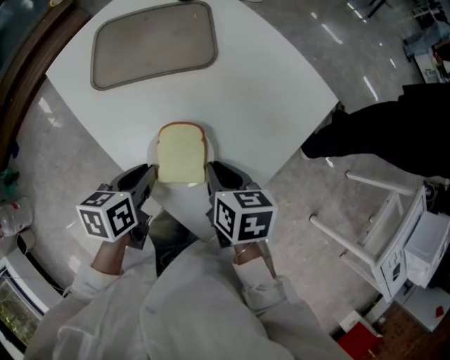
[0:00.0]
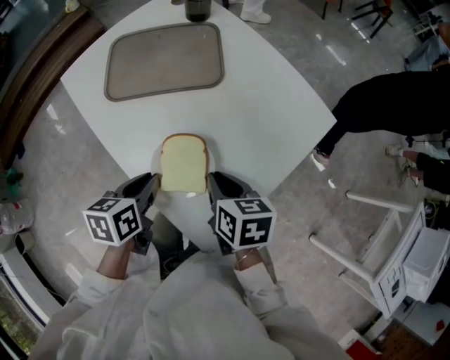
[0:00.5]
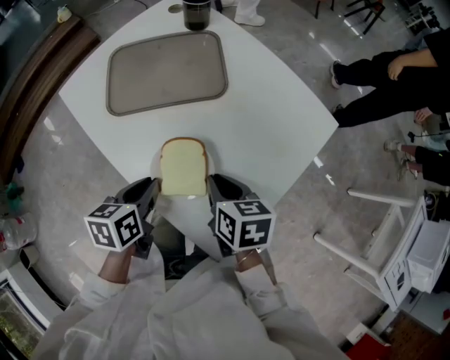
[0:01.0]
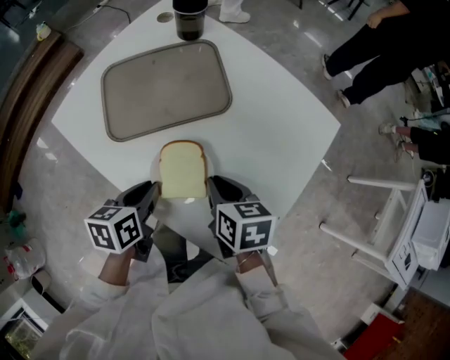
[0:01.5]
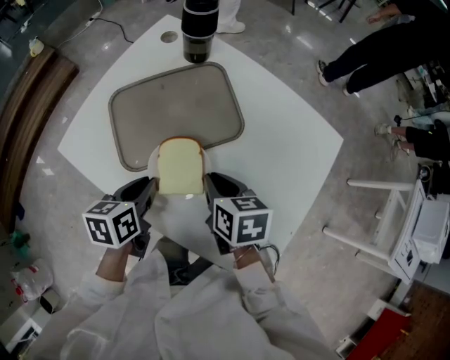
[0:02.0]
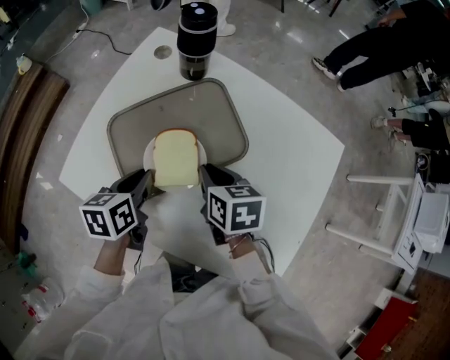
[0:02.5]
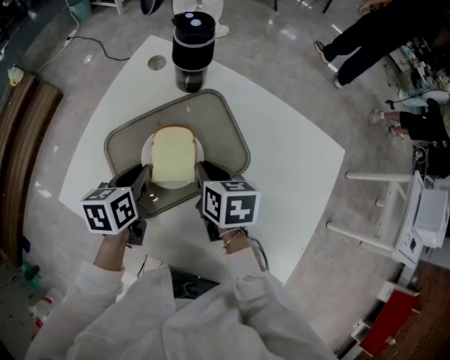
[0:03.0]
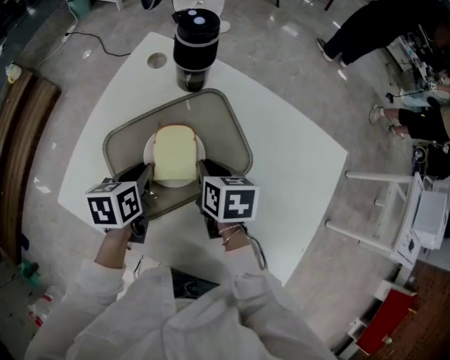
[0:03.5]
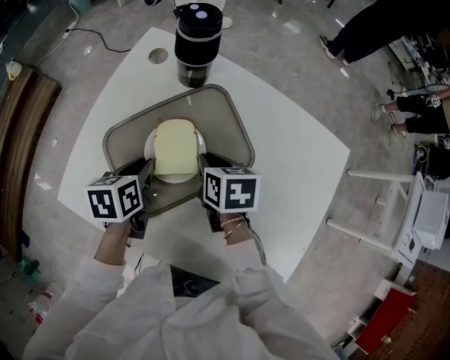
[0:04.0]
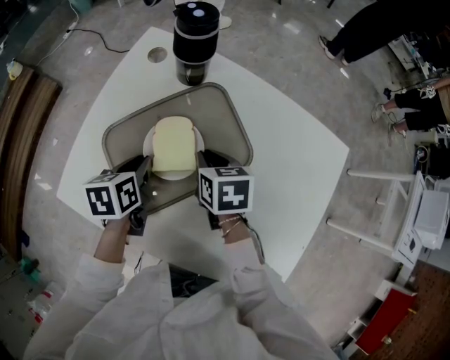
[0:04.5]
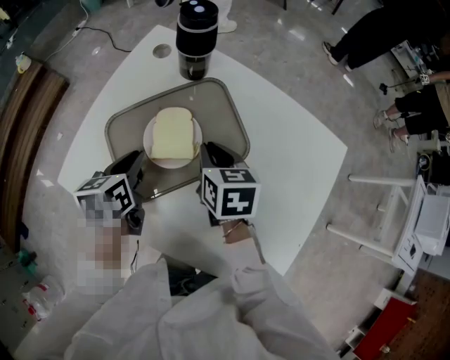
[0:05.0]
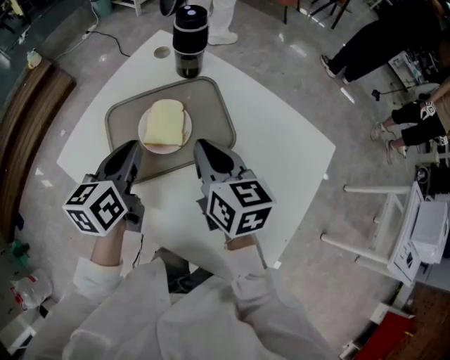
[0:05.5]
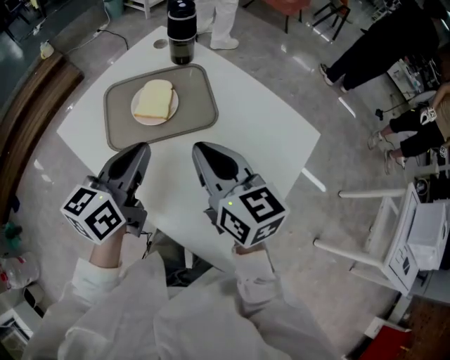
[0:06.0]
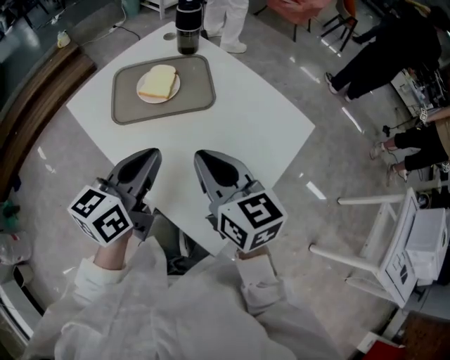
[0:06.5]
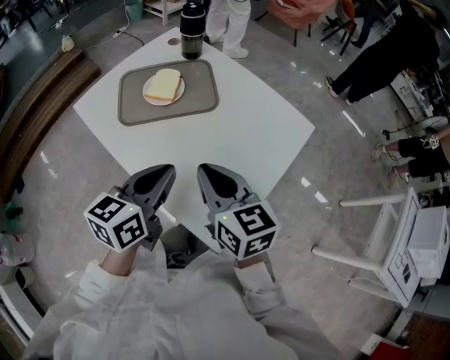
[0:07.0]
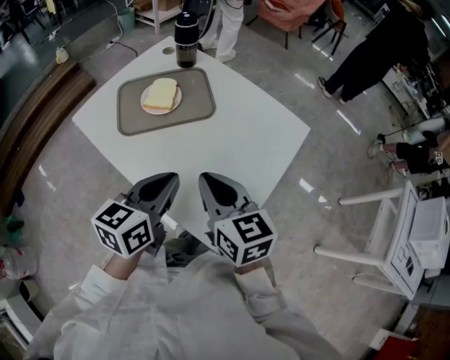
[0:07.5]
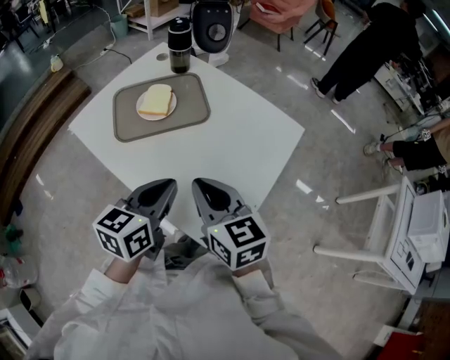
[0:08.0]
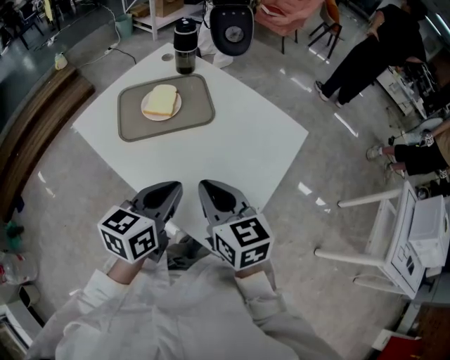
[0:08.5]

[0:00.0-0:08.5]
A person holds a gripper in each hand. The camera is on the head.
0:00.0 to 0:02.0: The grippers both shift forward and to the left by roughly 20 cm.
0:02.0 to 0:04.0: The two grippers go about 15 cm forward.
0:04.0 to 0:06.5: The grippers both shift backward, upward and to the right by approximately 40 cm. The right gripper angles its fingers upward, by approximately 40 degrees, while the left gripper tilts its fingers approximately 40 degrees upward.
0:06.5 to 0:08.5: The left gripper shifts by approximately 5 cm.

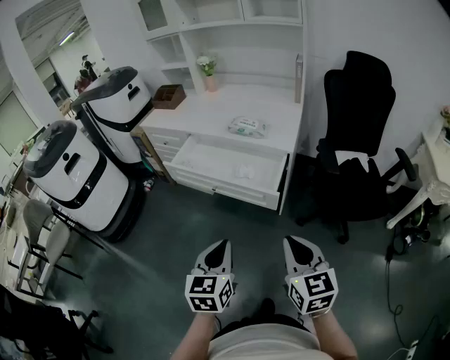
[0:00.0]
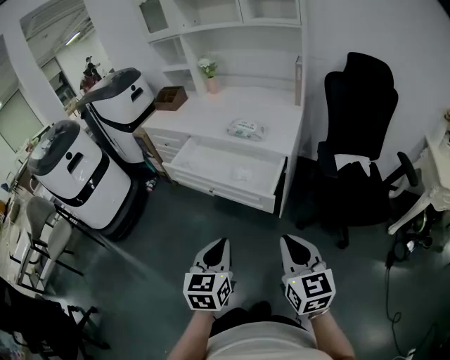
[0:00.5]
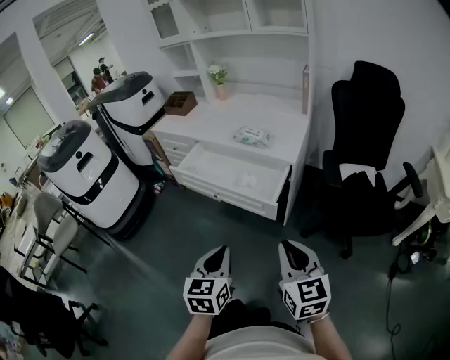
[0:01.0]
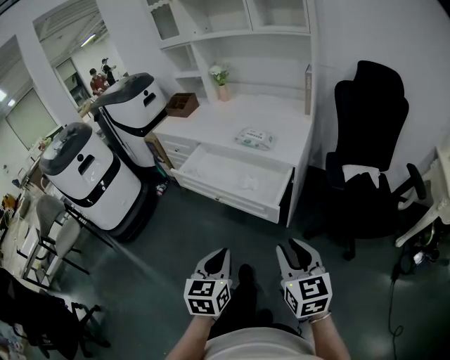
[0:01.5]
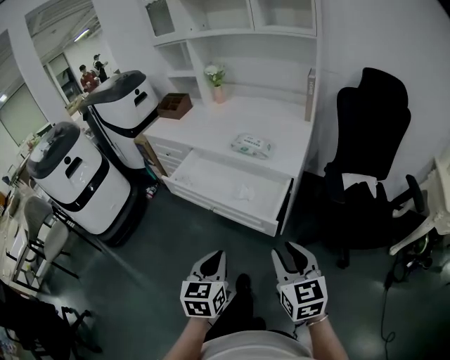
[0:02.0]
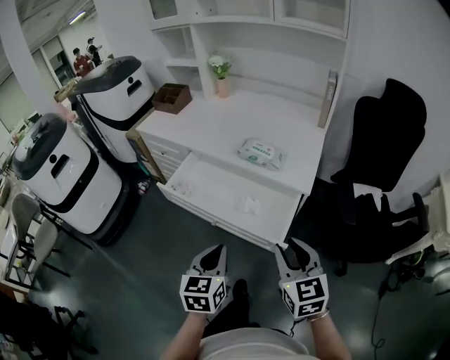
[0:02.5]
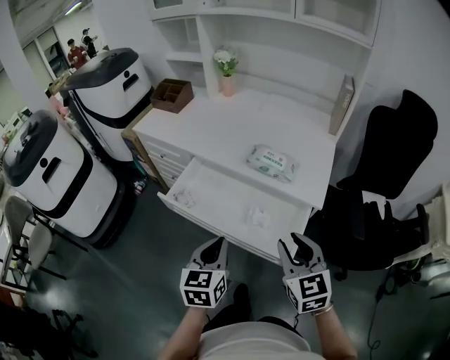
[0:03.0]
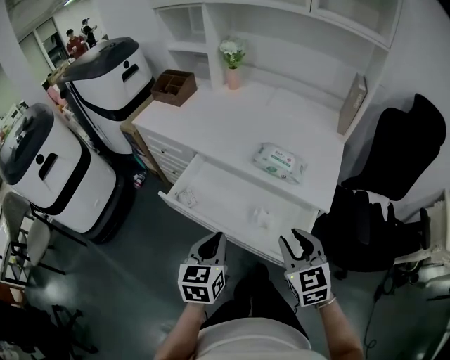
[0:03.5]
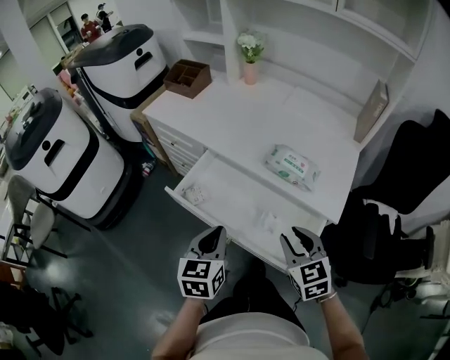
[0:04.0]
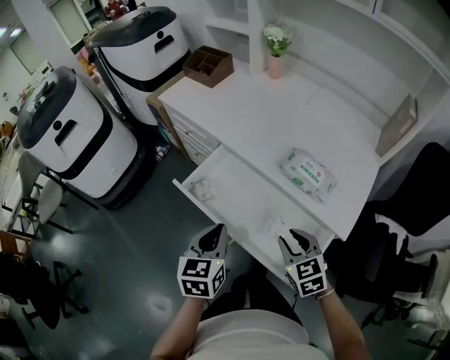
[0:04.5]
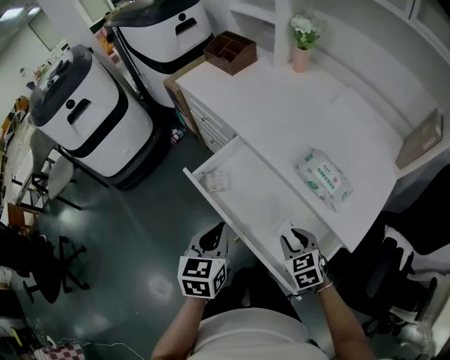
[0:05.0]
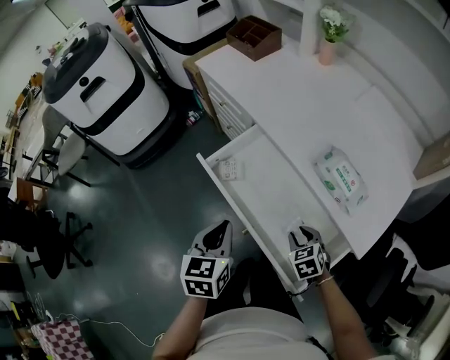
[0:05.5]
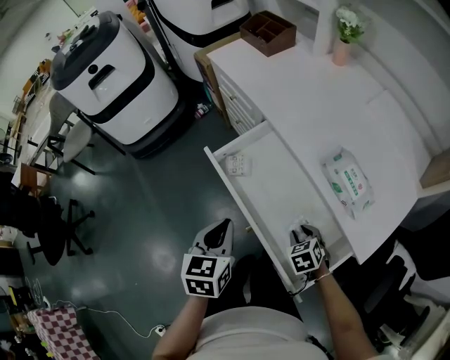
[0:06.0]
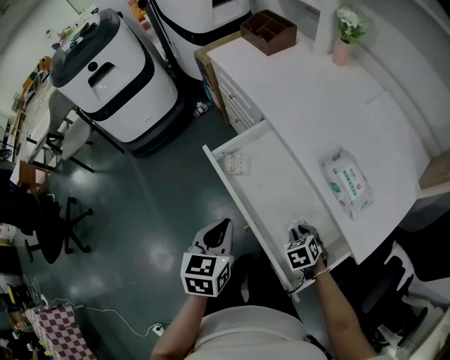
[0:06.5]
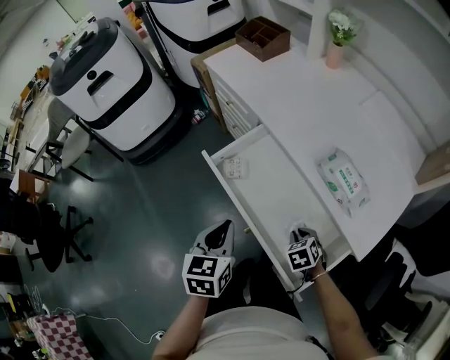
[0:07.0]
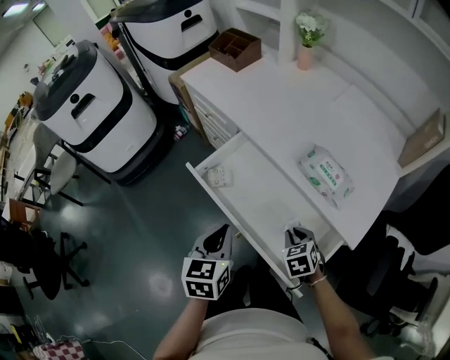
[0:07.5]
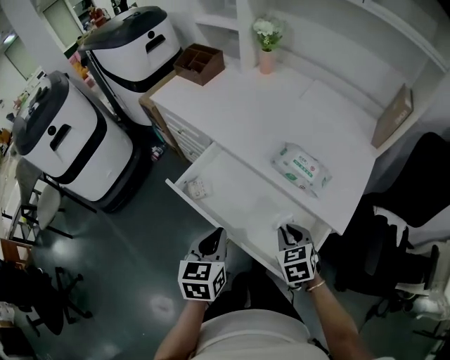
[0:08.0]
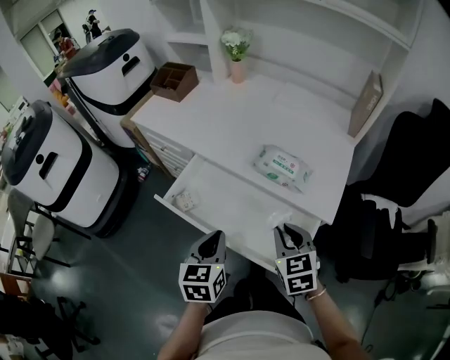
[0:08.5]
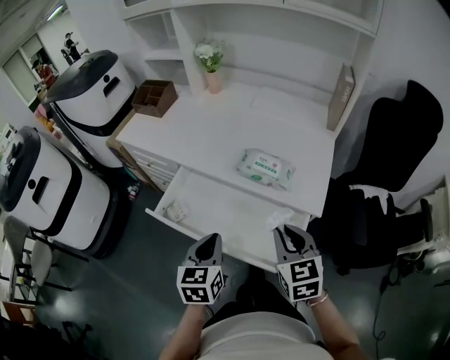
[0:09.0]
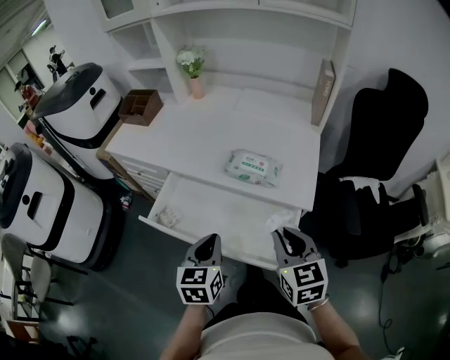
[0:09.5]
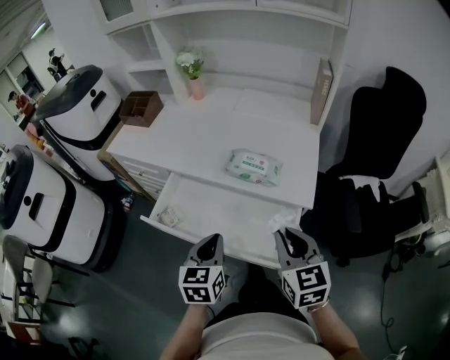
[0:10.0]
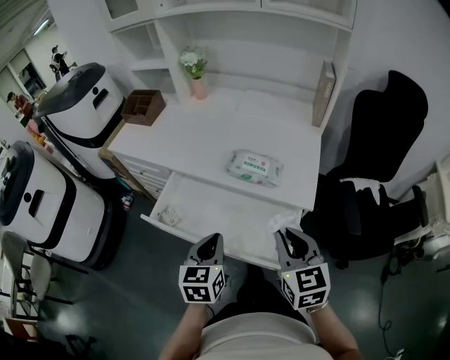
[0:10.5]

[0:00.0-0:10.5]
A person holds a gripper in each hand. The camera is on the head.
0:00.0 to 0:02.0: Both grippers travel together forward, some 10 cm. The right gripper opens.
0:02.0 to 0:04.0: Both grippers move forward, roughly 30 cm. The right gripper turns by about 20 degrees.
0:04.0 to 0:06.5: The left gripper changes place by about 5 cm, and swivels about 30 degrees; the right gripper is displaced downward by roughly 20 cm, and tips its fingers downward by some 40 degrees.
0:06.5 to 0:08.5: The right gripper is displaced upward by roughly 20 cm, and tilts its fingers roughly 30 degrees upward. The left gripper heads to the right, covering approximately 5 cm, and swivels roughly 20 degrees.
0:08.5 to 0:10.5: The right gripper heads upward and backward, covering approximately 10 cm.

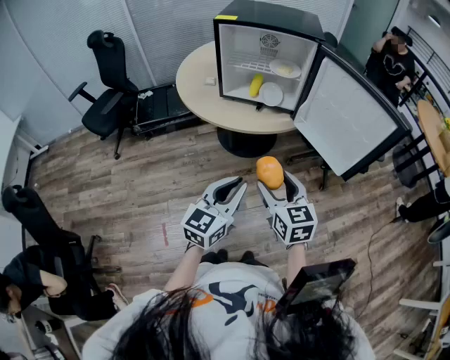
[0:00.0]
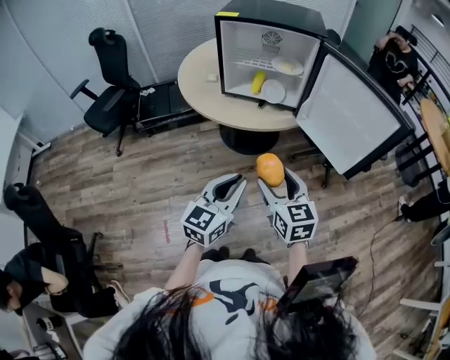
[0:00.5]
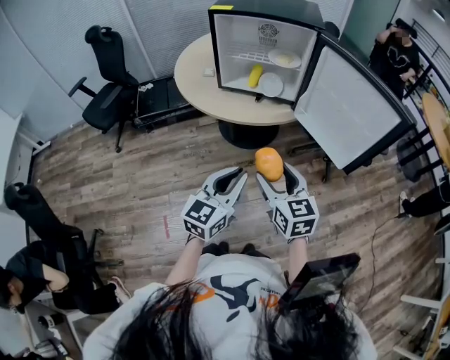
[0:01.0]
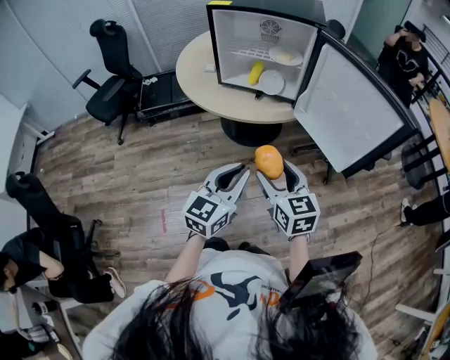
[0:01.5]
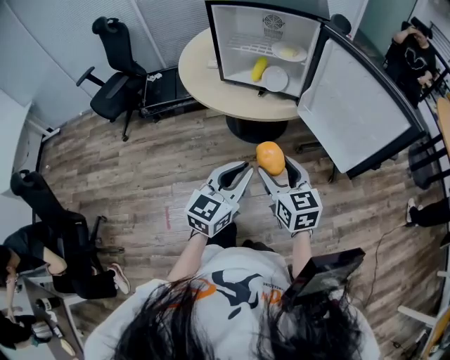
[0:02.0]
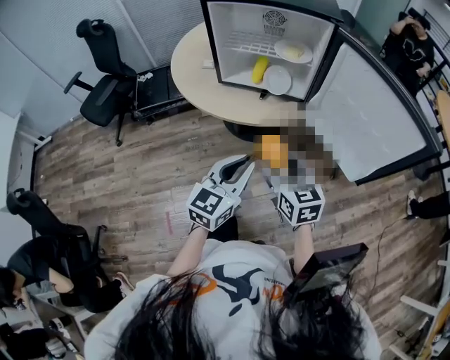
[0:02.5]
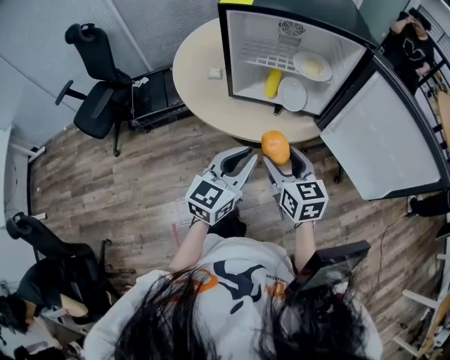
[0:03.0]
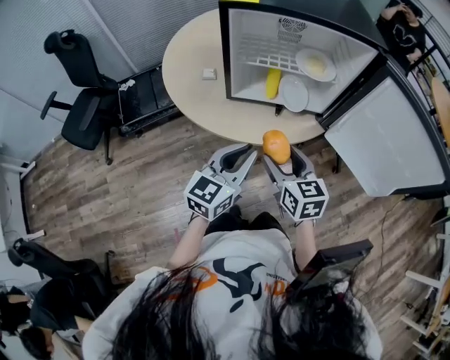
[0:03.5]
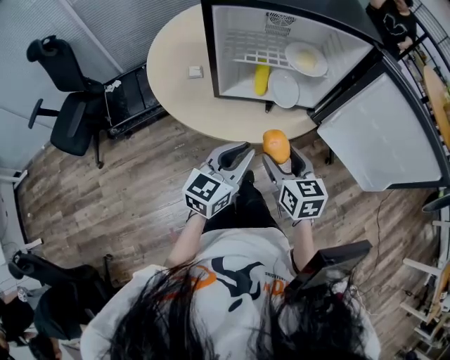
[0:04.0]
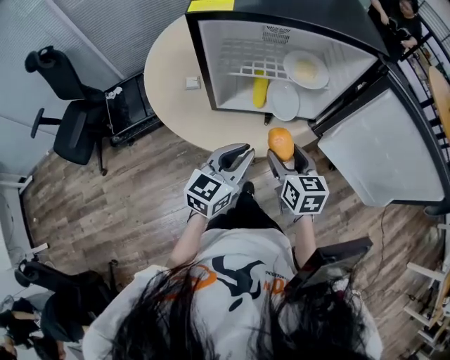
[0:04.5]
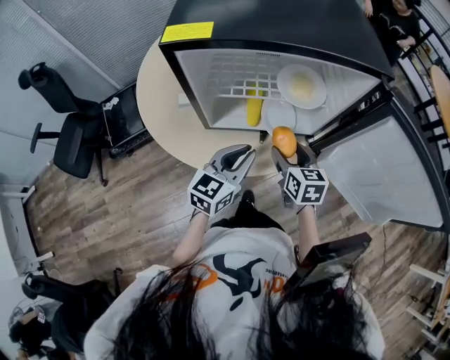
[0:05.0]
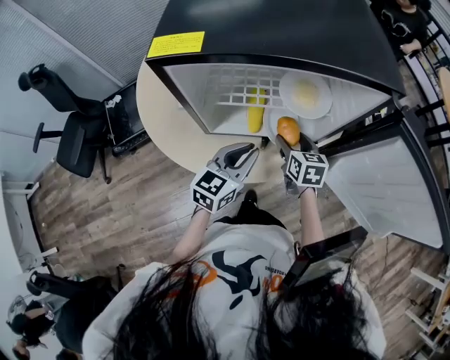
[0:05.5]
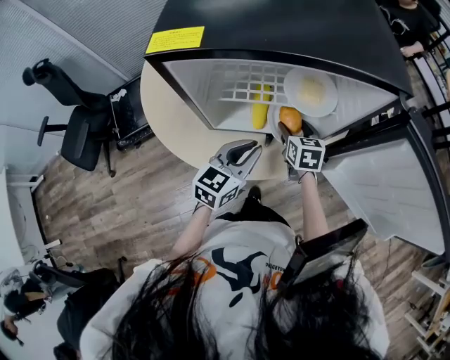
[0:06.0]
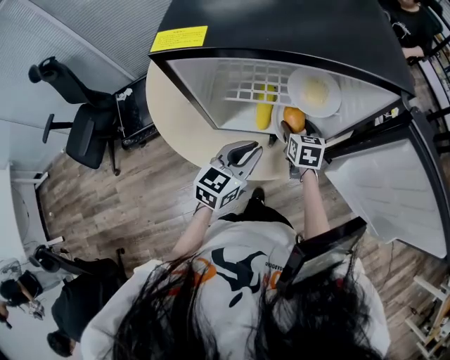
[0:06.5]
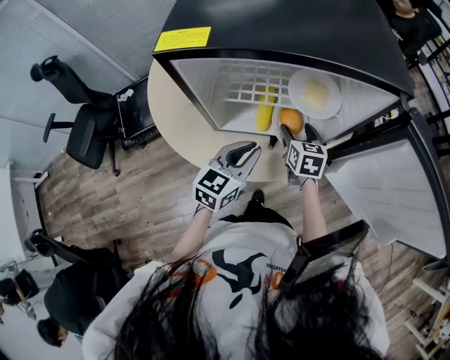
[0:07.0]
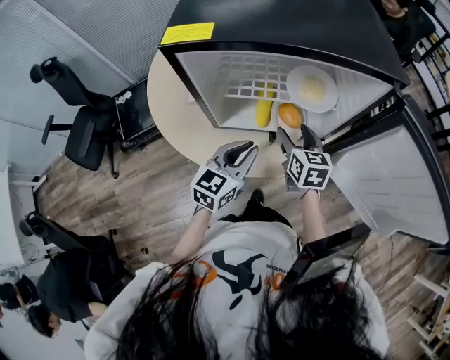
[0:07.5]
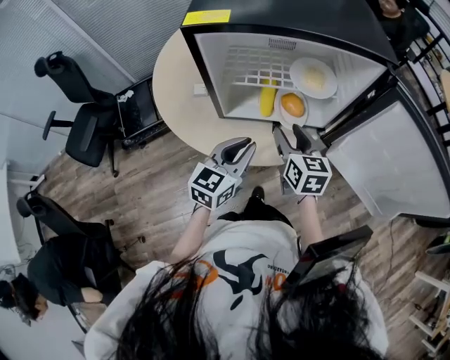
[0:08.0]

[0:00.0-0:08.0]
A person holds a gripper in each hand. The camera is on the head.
0:00.0 to 0:02.0: The left gripper is displaced to the right by about 5 cm, while the right gripper changes place by some 5 cm.
0:02.0 to 0:04.0: The two grippers go some 25 cm forward and to the left. The right gripper turns by about 20 degrees.
0:04.0 to 0:06.0: The left gripper moves forward, approximately 15 cm. Meanwhile the right gripper goes approximately 30 cm forward and downward.
0:06.0 to 0:08.0: The left gripper shifts about 5 cm backward. Meanwhile the right gripper is displaced backward and upward by approximately 15 cm.
